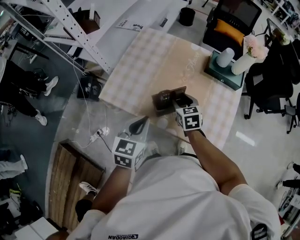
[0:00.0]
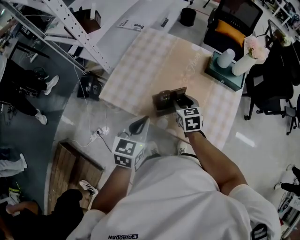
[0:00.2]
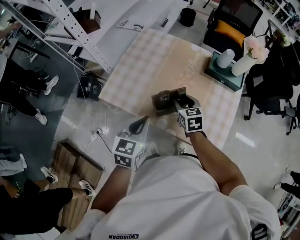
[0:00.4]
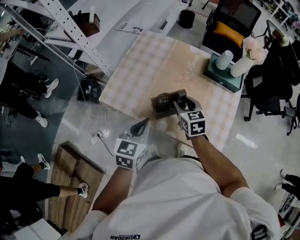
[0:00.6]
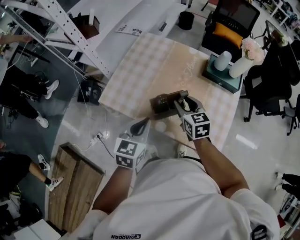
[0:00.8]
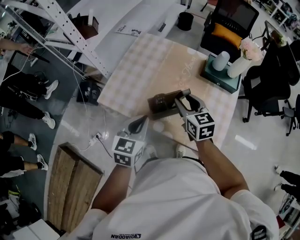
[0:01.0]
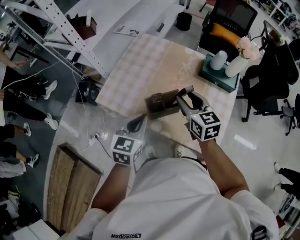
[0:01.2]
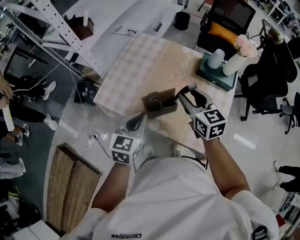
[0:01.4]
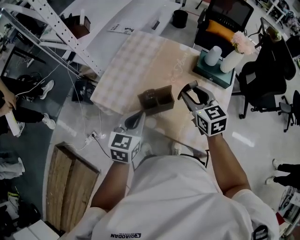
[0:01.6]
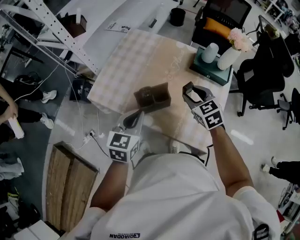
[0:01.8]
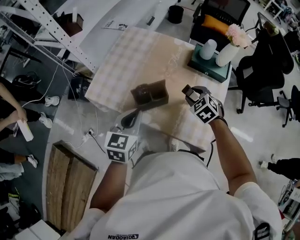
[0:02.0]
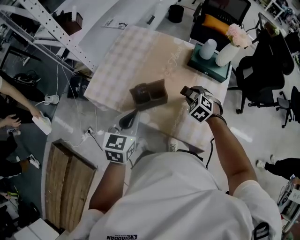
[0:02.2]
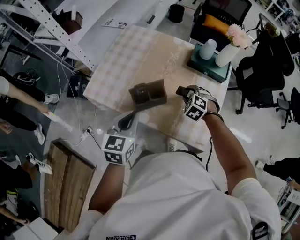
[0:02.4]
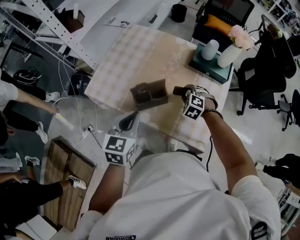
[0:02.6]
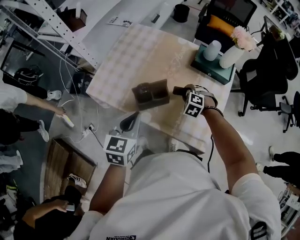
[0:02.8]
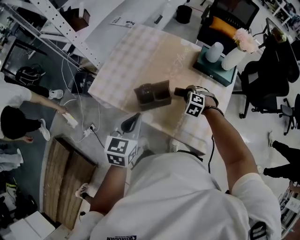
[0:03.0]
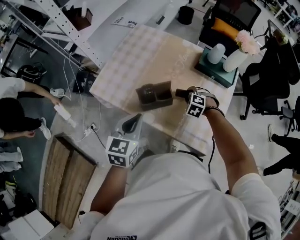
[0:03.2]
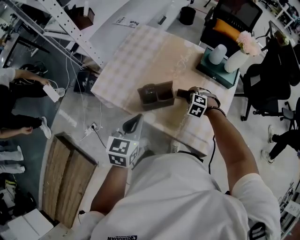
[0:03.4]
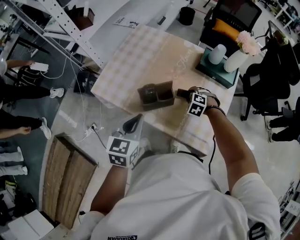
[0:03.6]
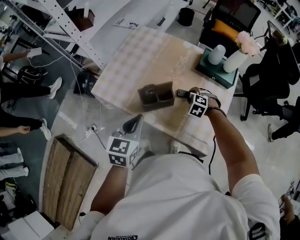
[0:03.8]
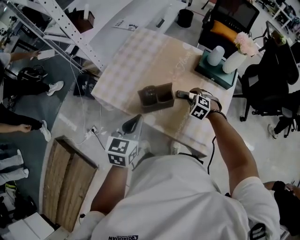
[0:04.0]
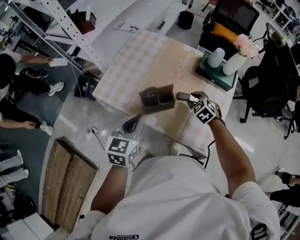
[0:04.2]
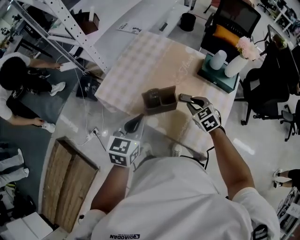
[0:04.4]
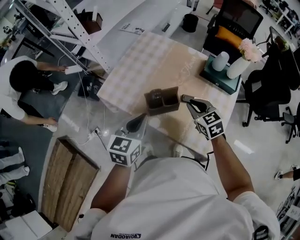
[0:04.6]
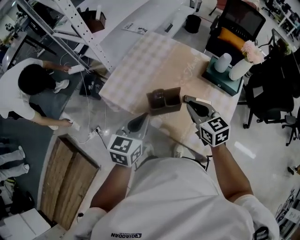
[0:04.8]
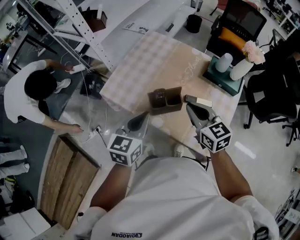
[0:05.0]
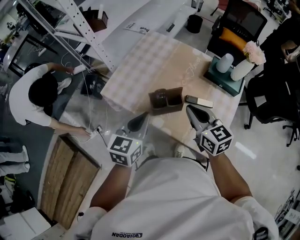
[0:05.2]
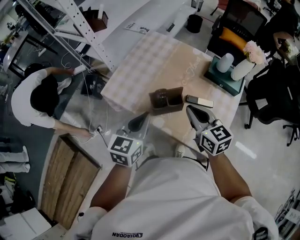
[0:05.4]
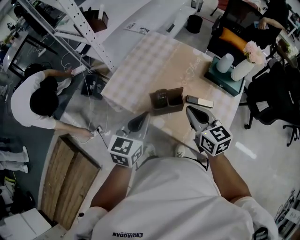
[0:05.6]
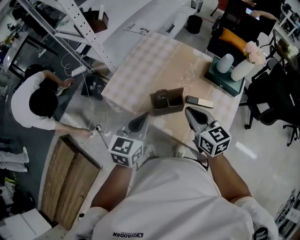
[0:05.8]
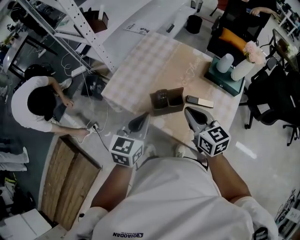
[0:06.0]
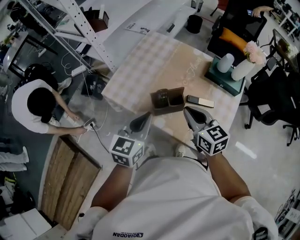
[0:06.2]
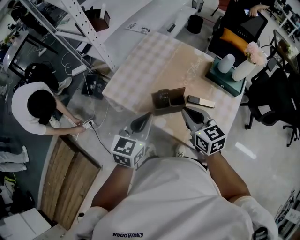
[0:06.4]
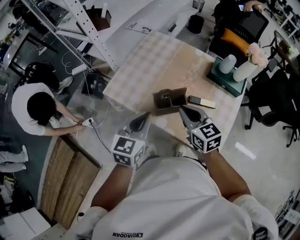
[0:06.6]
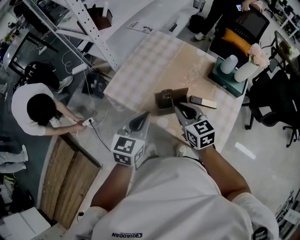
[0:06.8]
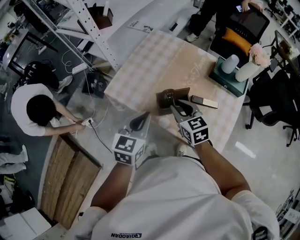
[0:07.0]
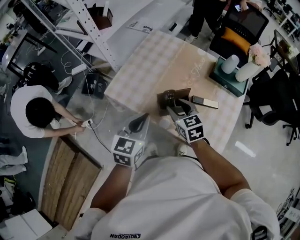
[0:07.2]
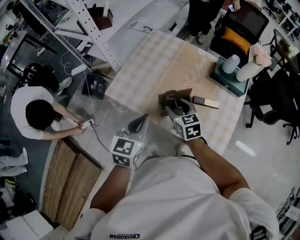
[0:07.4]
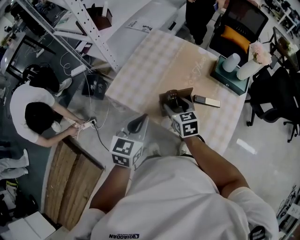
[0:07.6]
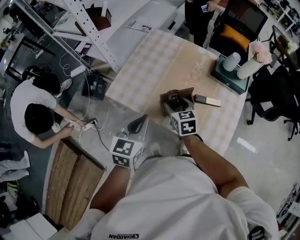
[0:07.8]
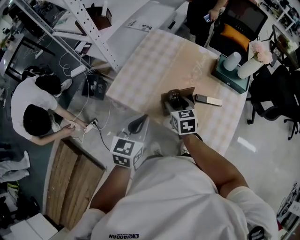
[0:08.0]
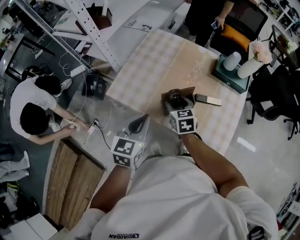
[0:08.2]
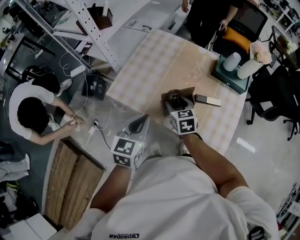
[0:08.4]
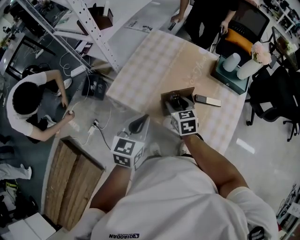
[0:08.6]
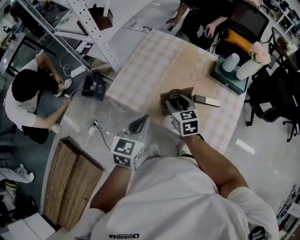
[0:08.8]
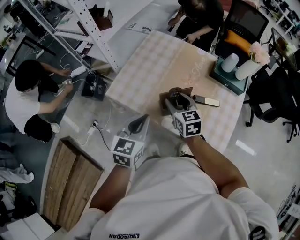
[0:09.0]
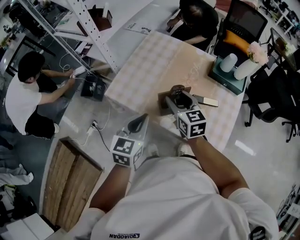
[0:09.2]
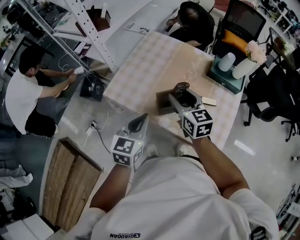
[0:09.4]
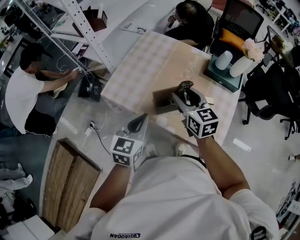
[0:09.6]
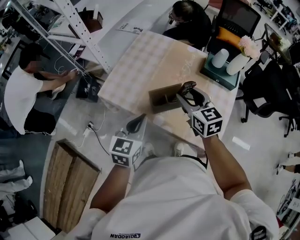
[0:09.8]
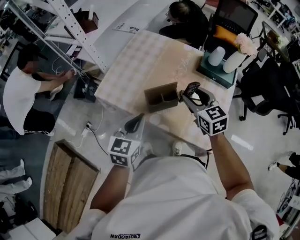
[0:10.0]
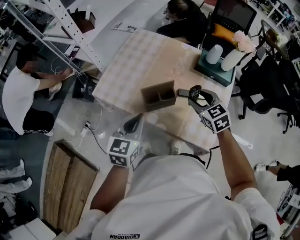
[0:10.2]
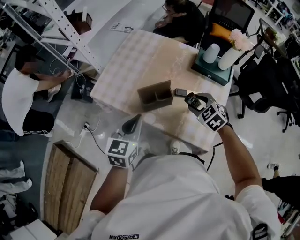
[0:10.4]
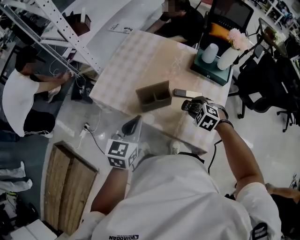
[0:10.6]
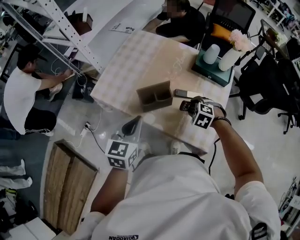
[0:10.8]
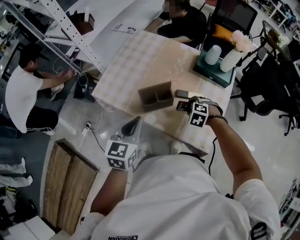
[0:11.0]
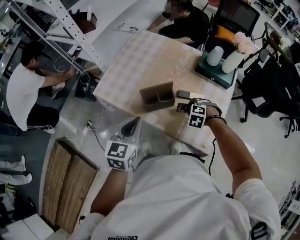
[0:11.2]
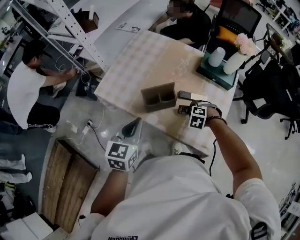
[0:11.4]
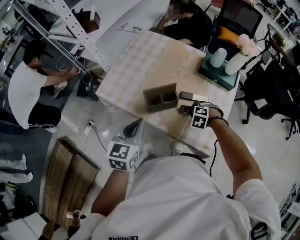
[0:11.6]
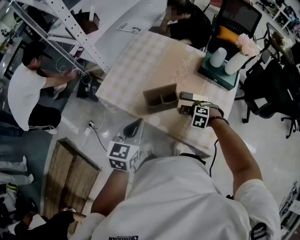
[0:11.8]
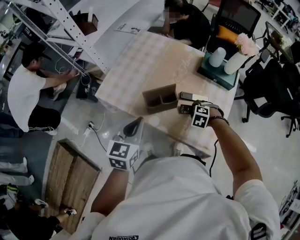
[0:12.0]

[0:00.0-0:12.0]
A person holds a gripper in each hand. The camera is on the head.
0:00.0 to 0:01.6: The right gripper is displaced upward and to the right by roughly 15 cm.
0:01.6 to 0:03.0: The right gripper goes some 20 cm downward, and points its fingers about 40 degrees further downward.
0:03.0 to 0:04.4: The right gripper heads upward, covering some 10 cm, and swivels approximately 40 degrees.
0:04.4 to 0:06.0: The right gripper goes approximately 15 cm upward and to the left, and changes its angle by roughly 30 degrees.
0:06.0 to 0:07.6: The right gripper heads downward, to the left and forward, covering approximately 15 cm, and opens up, while the left gripper moves to the left, some 5 cm.
0:07.6 to 0:09.0: There are only small adjustments of the grippers.
0:09.0 to 0:10.4: The left gripper shifts roughly 5 cm to the right; the right gripper shifts roughly 20 cm to the right, and turns by some 40 degrees.
0:10.4 to 0:12.0: The right gripper heads downward, covering about 15 cm, and rotates some 40 degrees.

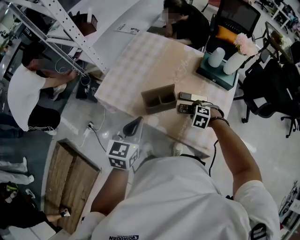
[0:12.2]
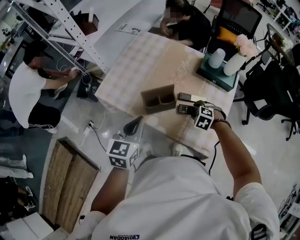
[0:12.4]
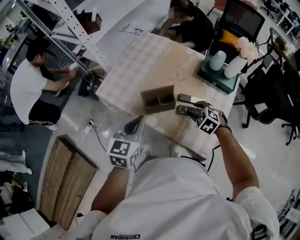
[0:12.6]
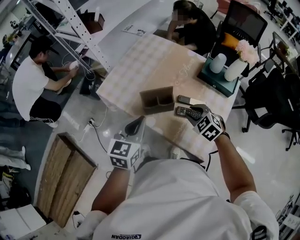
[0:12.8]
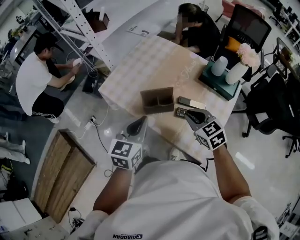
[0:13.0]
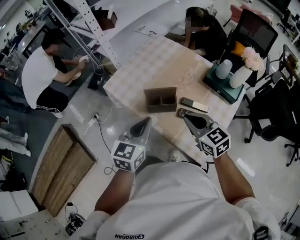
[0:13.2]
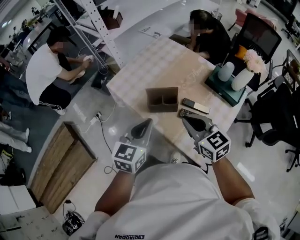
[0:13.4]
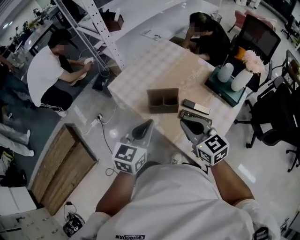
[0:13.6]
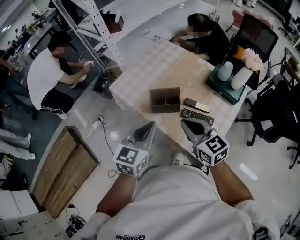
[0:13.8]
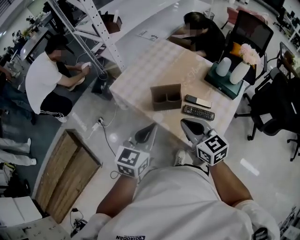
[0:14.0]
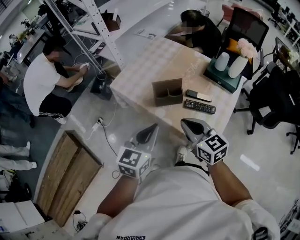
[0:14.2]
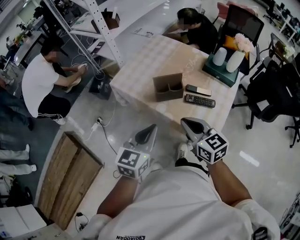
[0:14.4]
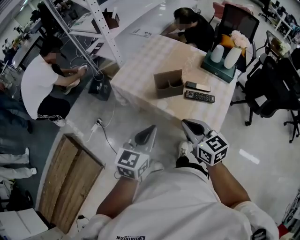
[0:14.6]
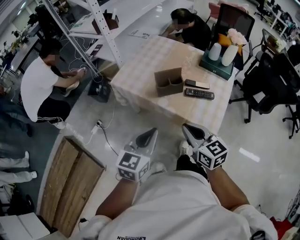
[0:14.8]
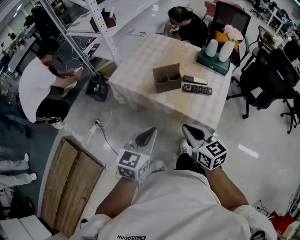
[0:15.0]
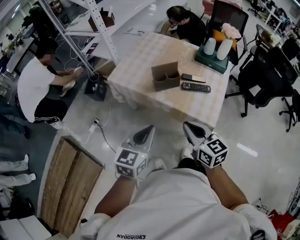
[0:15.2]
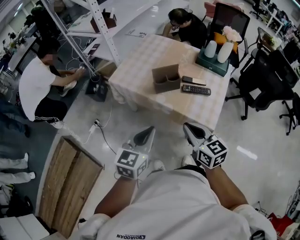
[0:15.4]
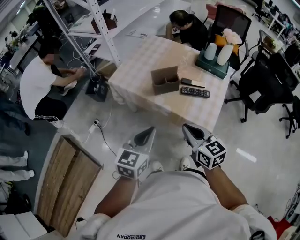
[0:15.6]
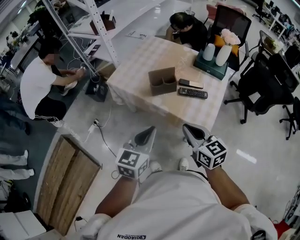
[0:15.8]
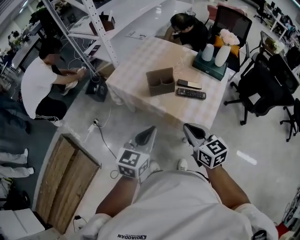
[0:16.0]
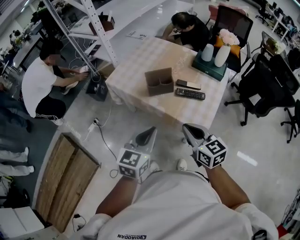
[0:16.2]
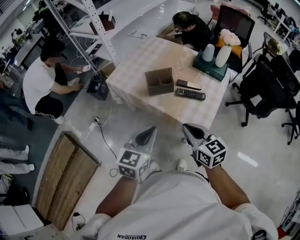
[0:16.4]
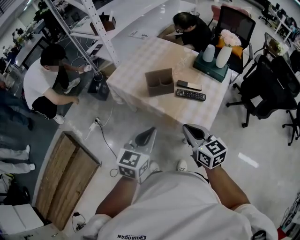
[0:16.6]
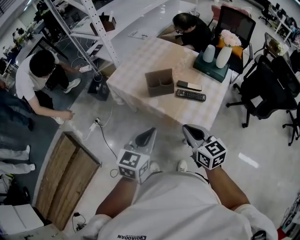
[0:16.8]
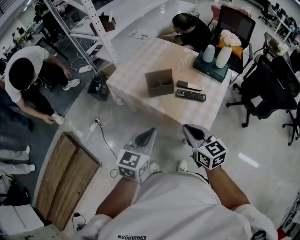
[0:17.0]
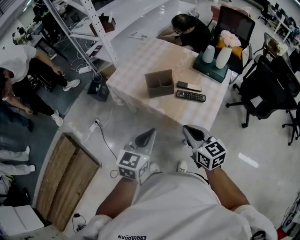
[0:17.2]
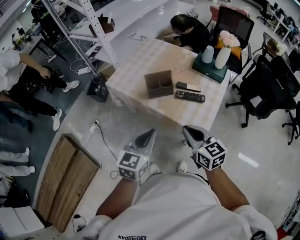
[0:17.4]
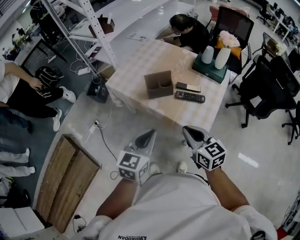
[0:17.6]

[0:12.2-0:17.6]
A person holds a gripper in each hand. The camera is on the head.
0:12.2 to 0:13.6: The right gripper is displaced upward by roughly 25 cm, points its fingers approximately 60 degrees further upward, and closes, while the left gripper shifts by approximately 10 cm.
0:13.6 to 0:15.0: The grippers both shift backward and to the left by approximately 20 cm. The right gripper rotates roughly 20 degrees.
0:15.0 to 0:16.2: The grippers both shift to the right by about 5 cm.
0:16.2 to 0:17.6: The two grippers keep their place.

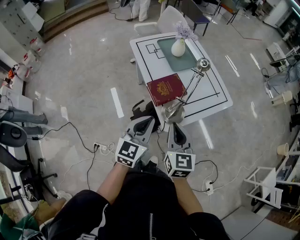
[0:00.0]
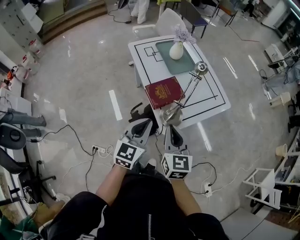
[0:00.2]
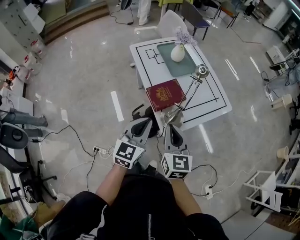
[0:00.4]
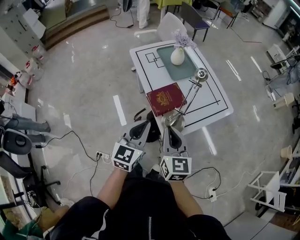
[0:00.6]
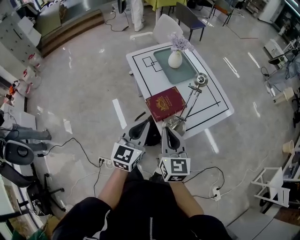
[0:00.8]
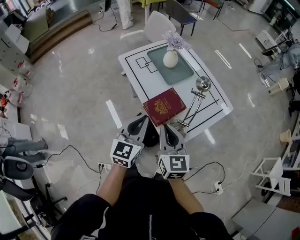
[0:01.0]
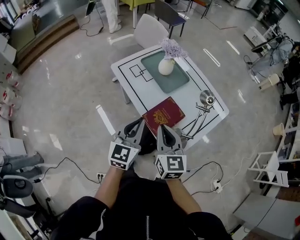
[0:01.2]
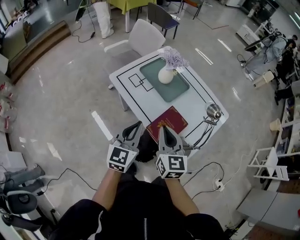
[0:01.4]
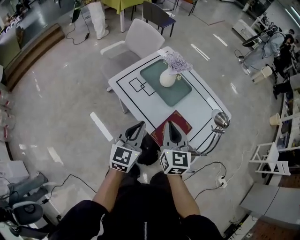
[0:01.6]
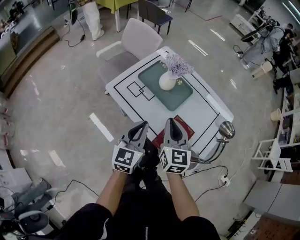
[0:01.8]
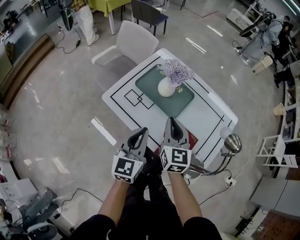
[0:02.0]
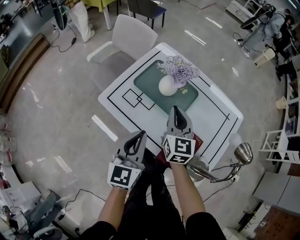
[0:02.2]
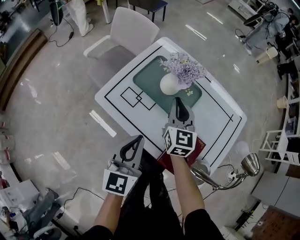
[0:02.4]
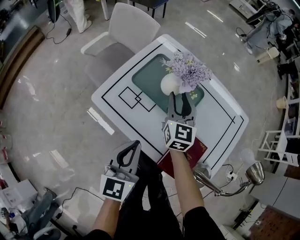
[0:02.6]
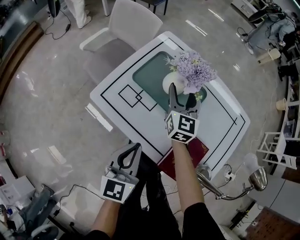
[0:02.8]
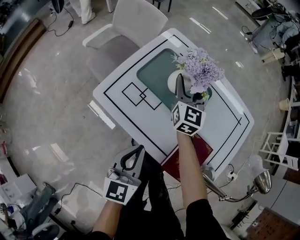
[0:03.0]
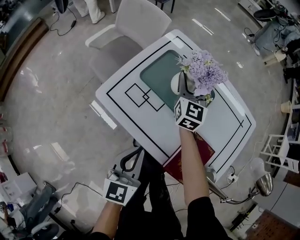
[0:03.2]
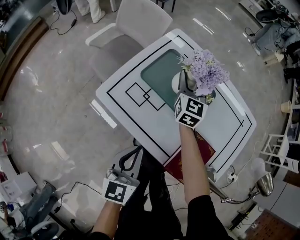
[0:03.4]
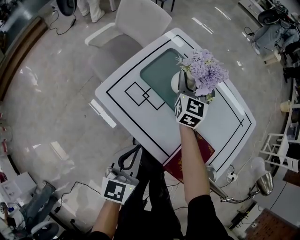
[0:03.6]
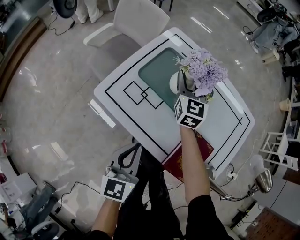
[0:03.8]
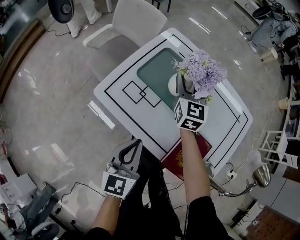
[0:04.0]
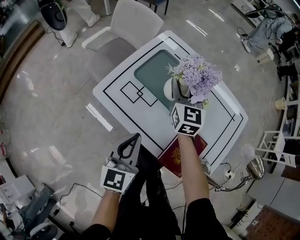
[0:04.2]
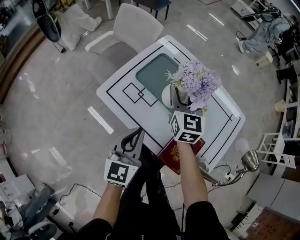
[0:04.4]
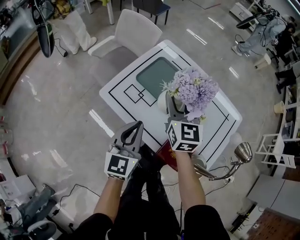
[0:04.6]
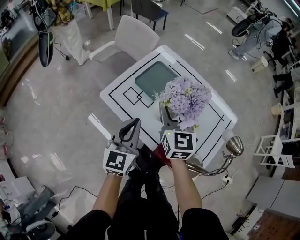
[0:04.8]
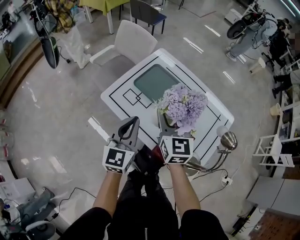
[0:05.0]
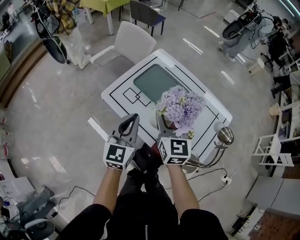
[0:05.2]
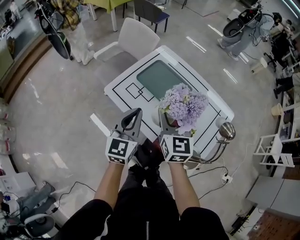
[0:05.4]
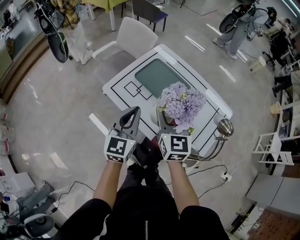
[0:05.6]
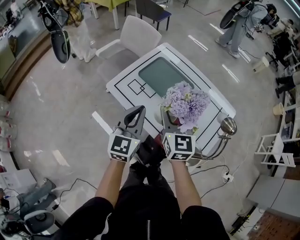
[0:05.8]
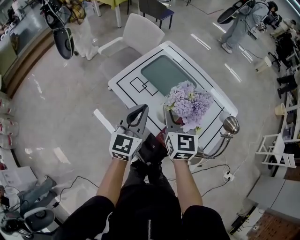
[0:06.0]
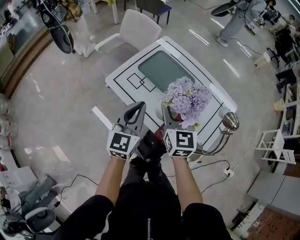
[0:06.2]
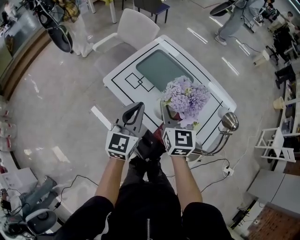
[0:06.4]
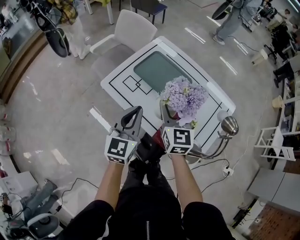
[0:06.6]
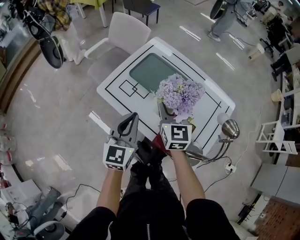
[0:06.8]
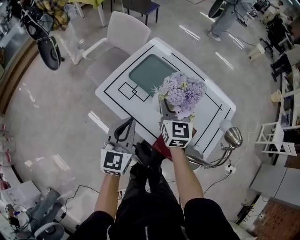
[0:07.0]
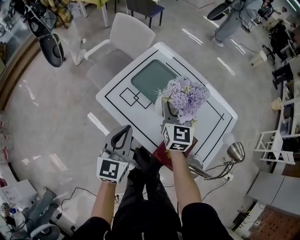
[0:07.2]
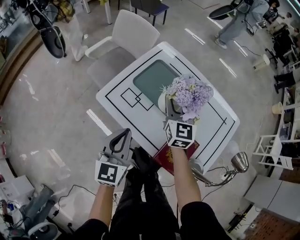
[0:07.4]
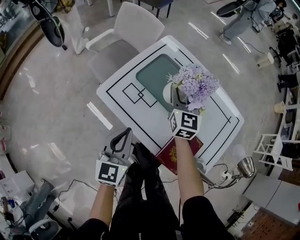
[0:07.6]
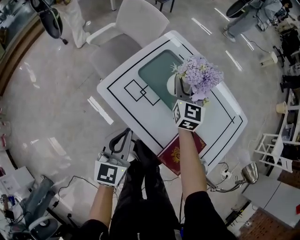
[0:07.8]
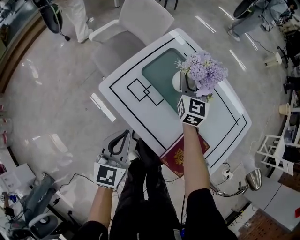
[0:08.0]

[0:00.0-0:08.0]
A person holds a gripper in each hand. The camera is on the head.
0:00.0 to 0:01.6: The two grippers go approximately 30 cm forward and to the left. The right gripper changes its angle by some 20 degrees.
0:01.6 to 0:03.2: The right gripper goes approximately 35 cm forward, and opens, while the left gripper goes about 15 cm downward, forward and to the left.
0:03.2 to 0:04.8: The left gripper is displaced upward by some 10 cm, while the right gripper heads backward and upward, covering roughly 25 cm.
0:04.8 to 0:06.4: The right gripper heads backward, covering roughly 5 cm.
0:06.4 to 0:08.0: The left gripper is displaced downward and to the left by roughly 15 cm. The right gripper heads forward and downward, covering roughly 30 cm.
